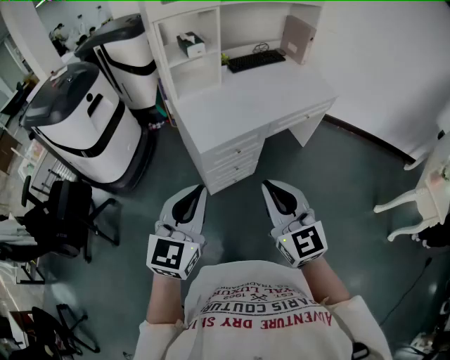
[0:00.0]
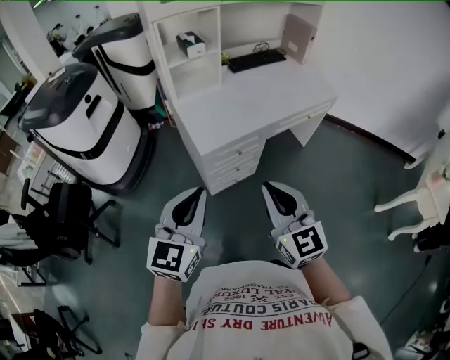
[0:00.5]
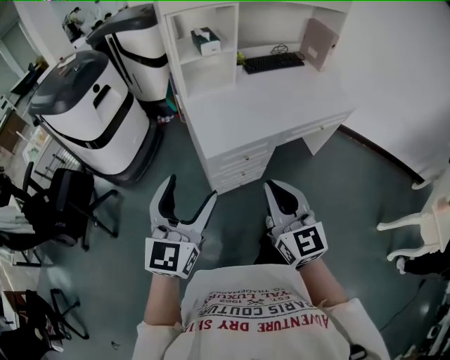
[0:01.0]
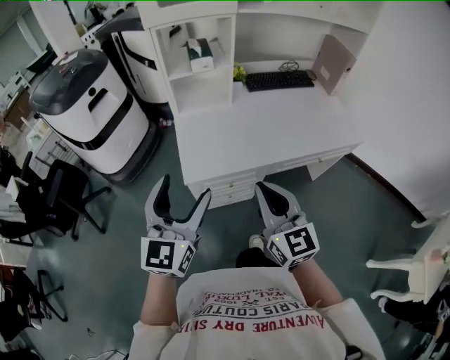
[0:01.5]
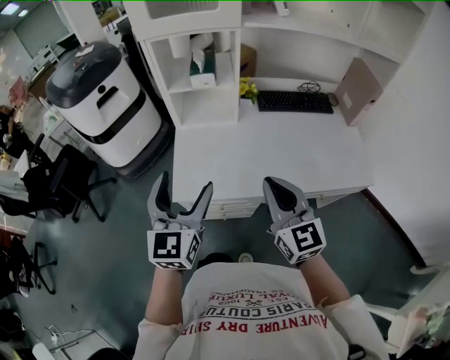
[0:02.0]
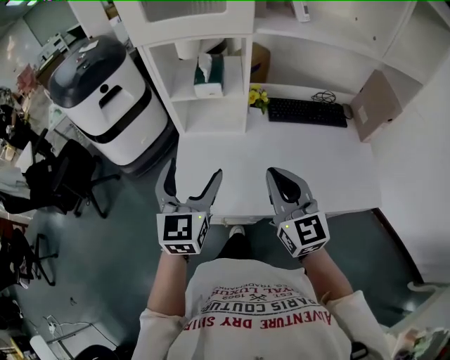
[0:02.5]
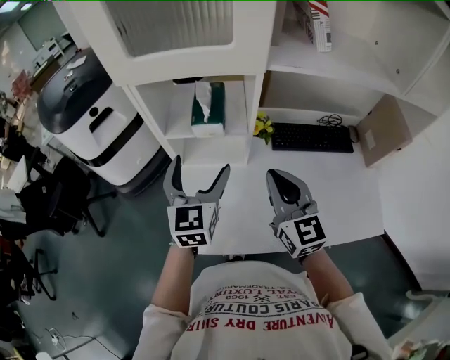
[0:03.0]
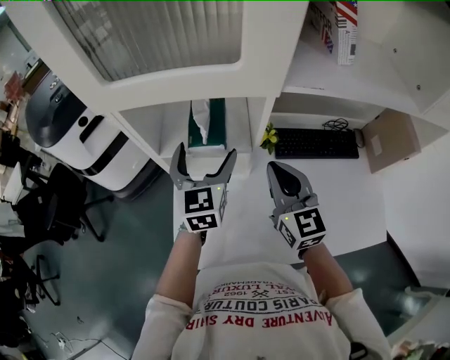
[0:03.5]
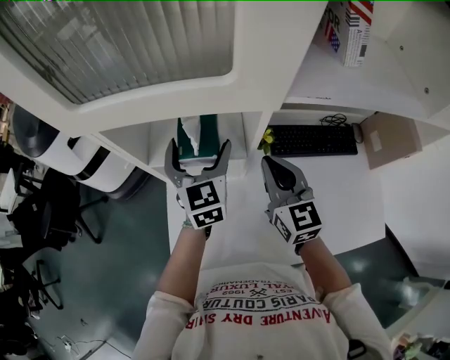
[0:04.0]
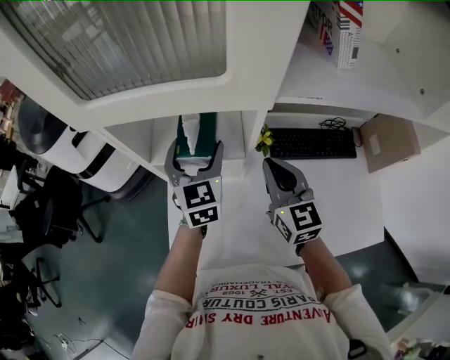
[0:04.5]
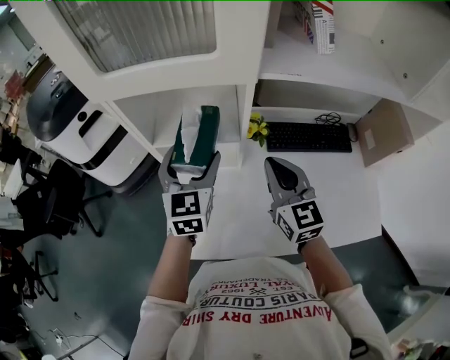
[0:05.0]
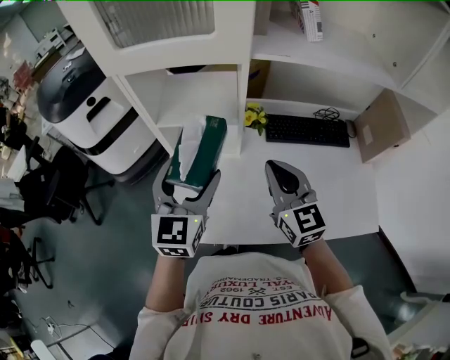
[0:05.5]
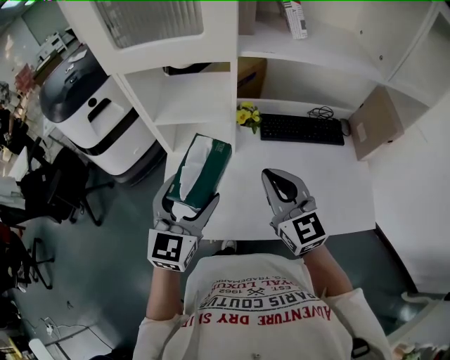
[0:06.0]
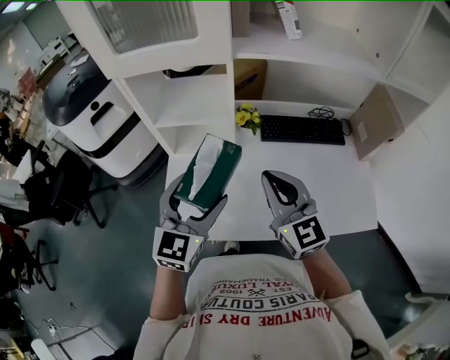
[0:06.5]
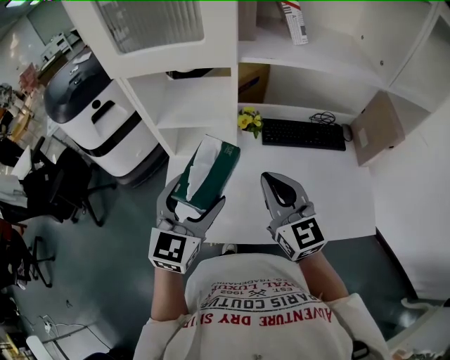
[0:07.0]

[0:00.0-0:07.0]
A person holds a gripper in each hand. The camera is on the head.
0:00.0 to 0:02.0: The left gripper moves about 35 cm, changes its angle by about 40 degrees, and opens its fingers. The right gripper moves about 40 cm, and turns by about 20 degrees.
0:02.0 to 0:03.5: The grippers both shift forward by roughly 35 cm.
0:03.5 to 0:05.0: The grippers stay close to where they were, moving slightly.
0:05.0 to 0:07.0: The left gripper is displaced backward by some 20 cm, while the right gripper travels backward by some 10 cm.

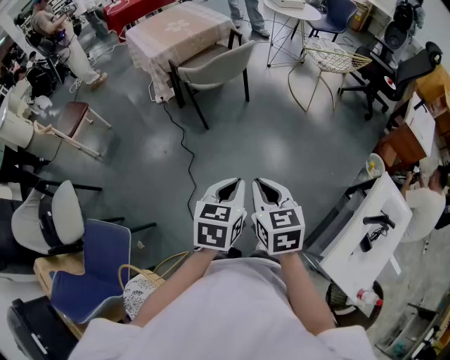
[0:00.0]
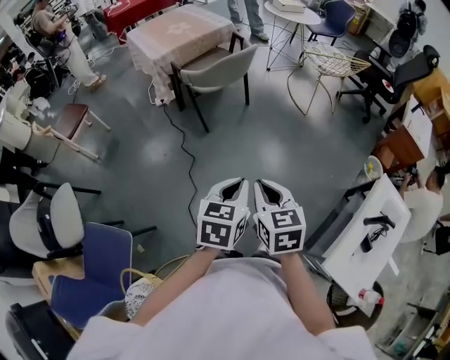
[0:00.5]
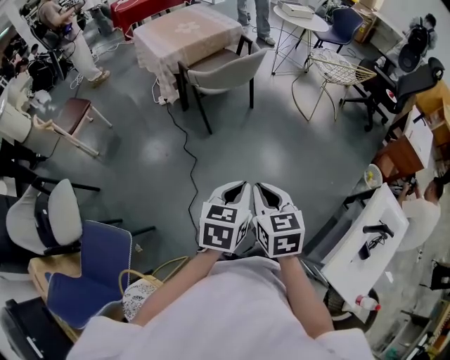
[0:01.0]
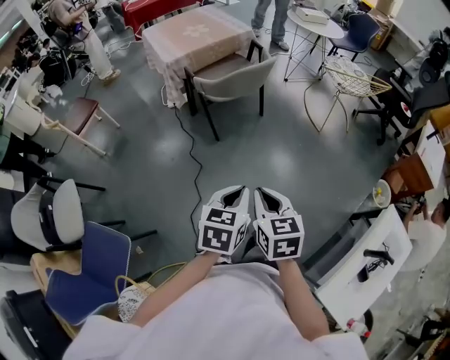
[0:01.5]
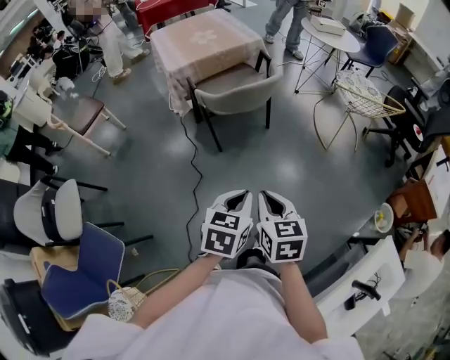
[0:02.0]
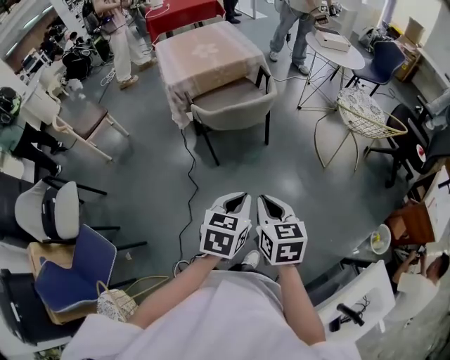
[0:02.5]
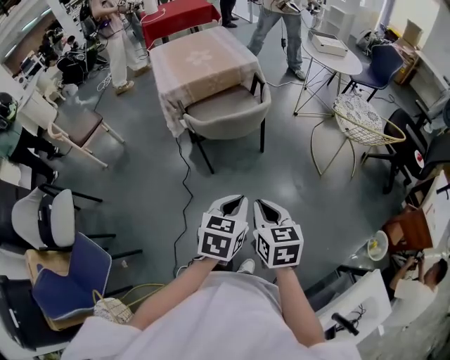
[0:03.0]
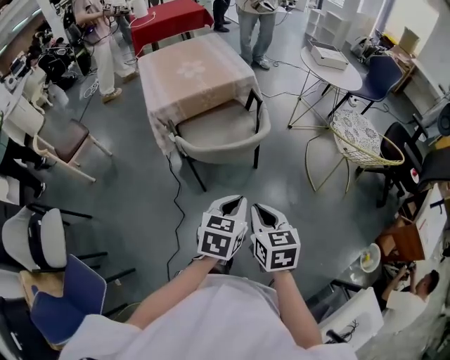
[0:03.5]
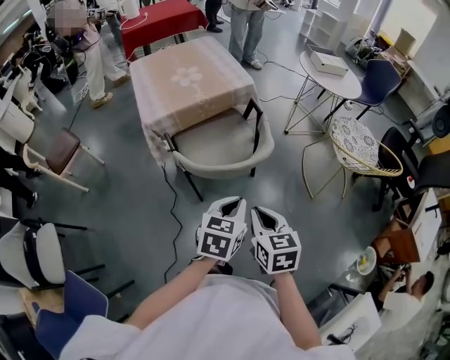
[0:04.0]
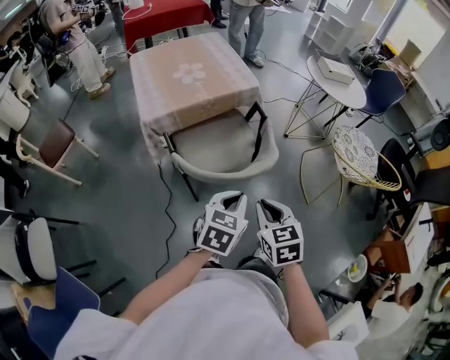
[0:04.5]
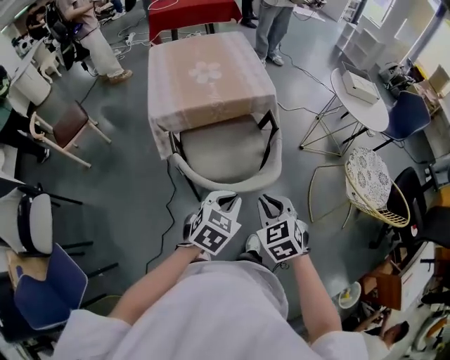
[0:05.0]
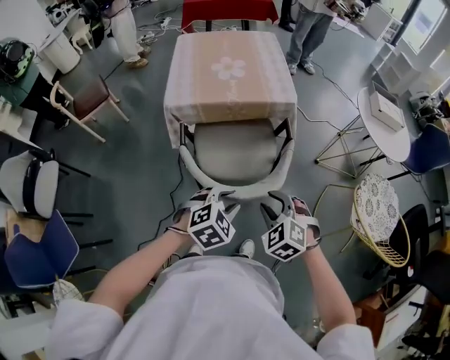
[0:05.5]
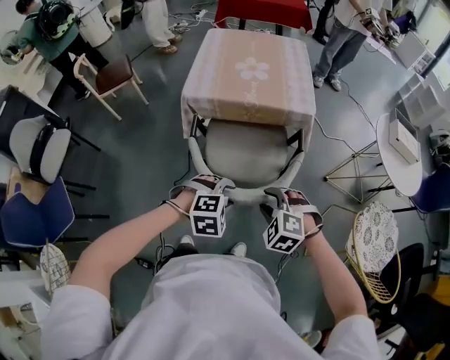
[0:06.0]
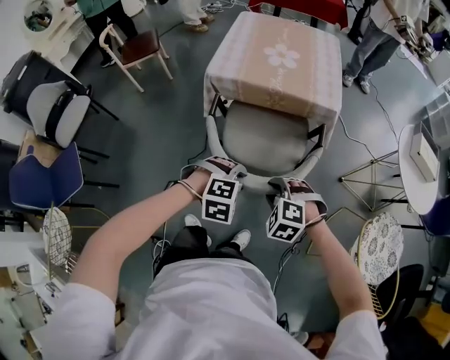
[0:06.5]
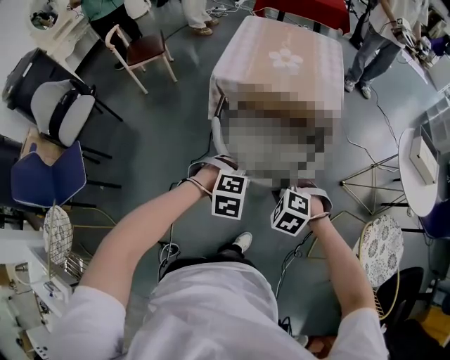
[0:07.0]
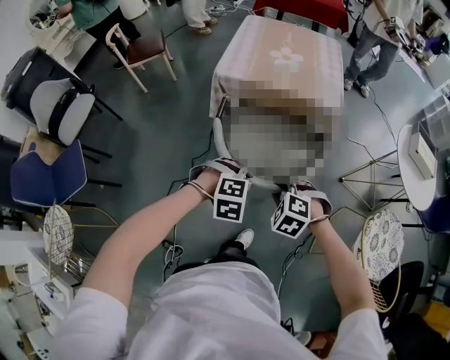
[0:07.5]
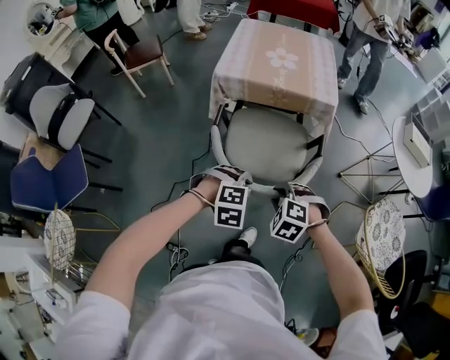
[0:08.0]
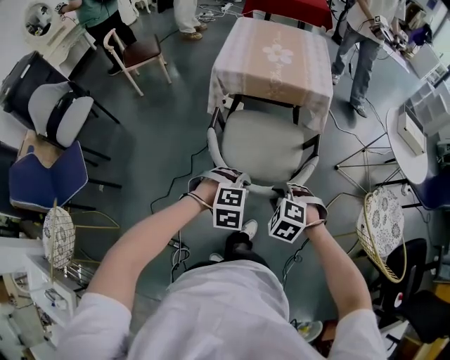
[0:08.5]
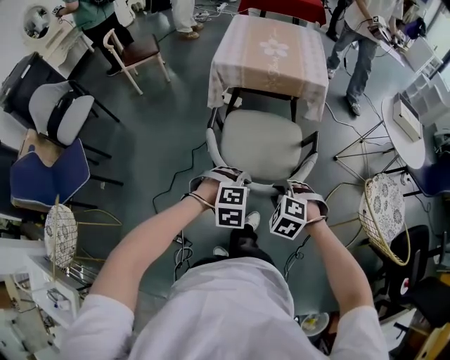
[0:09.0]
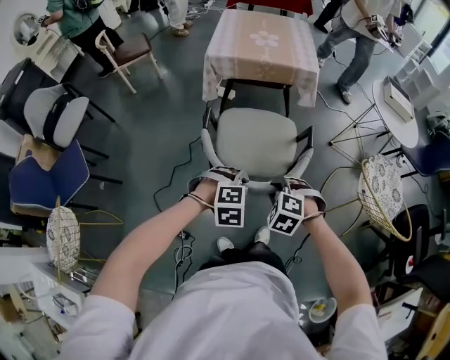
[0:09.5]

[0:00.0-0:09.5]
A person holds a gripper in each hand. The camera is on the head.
0:00.0 to 0:02.0: The grippers both shift forward by about 20 cm.
0:02.0 to 0:04.0: The two grippers go about 30 cm forward.
0:04.0 to 0:05.5: The right gripper heads forward, covering some 20 cm, twists roughly 70 degrees counterclockwise, seen from behind, and opens up. Meanwhile the left gripper travels forward and downward by some 15 cm, swivels about 30 degrees, and opens its fingers.
0:05.5 to 0:07.5: The right gripper ends up roughly 5 cm from where it was, and turns by approximately 30 degrees. Meanwhile the left gripper rotates about 20 degrees.
0:07.5 to 0:09.5: Both grippers move backward, about 25 cm.

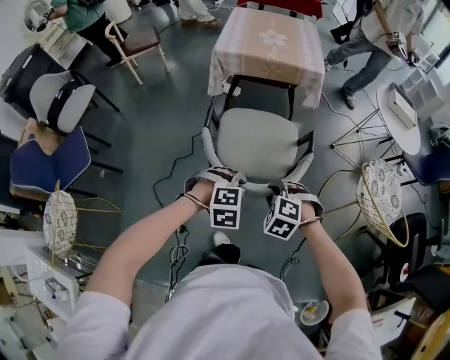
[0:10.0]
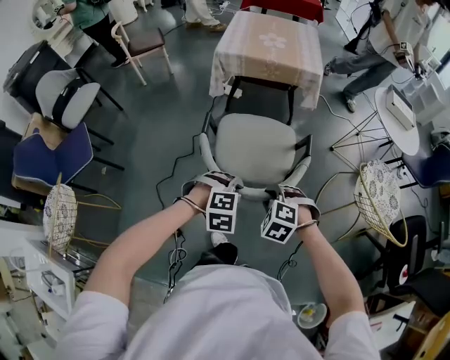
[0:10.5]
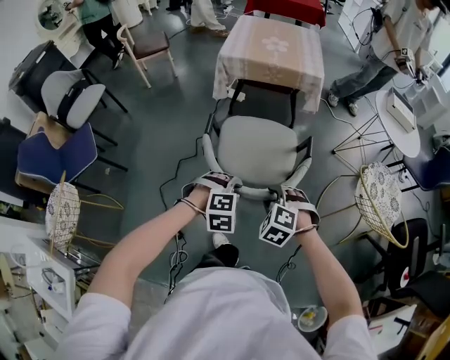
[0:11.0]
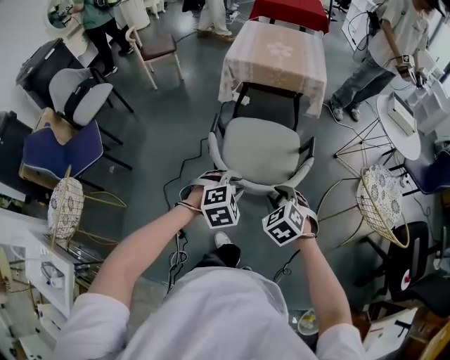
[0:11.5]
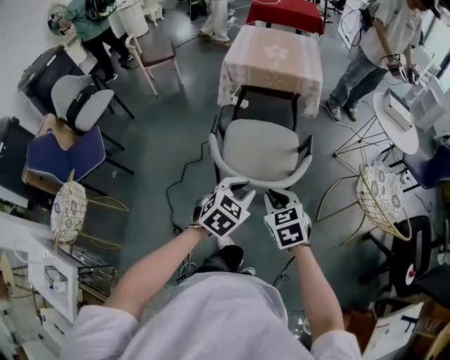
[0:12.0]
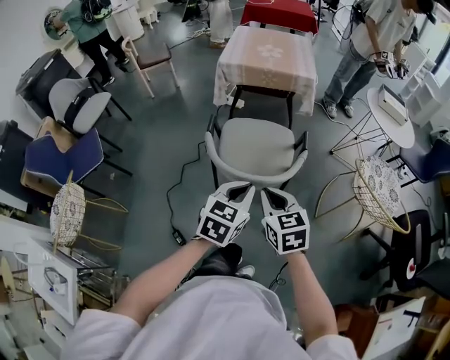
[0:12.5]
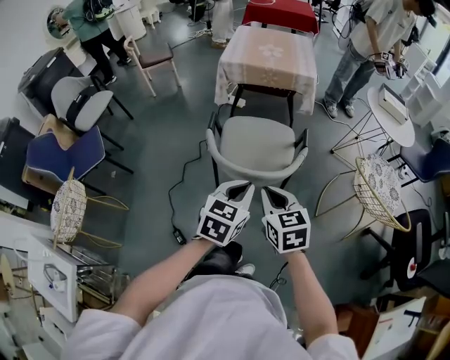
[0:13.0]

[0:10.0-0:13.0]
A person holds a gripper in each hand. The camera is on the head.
0:10.0 to 0:11.5: The two grippers go roughly 5 cm backward. The right gripper rotates approximately 30 degrees.
0:11.5 to 0:13.0: The two grippers go approximately 10 cm upward and backward. The left gripper twists approximately 50 degrees counterclockwise, seen from behind, and closes its fingers; the right gripper swivels some 40 degrees, and closes up.

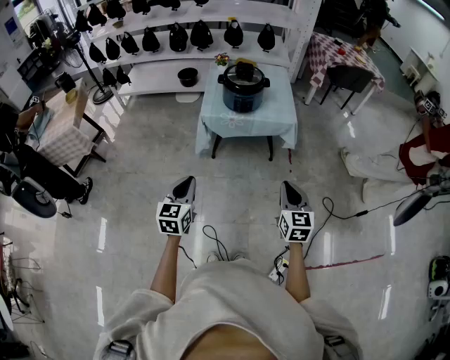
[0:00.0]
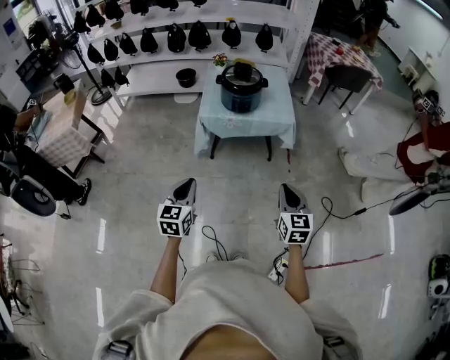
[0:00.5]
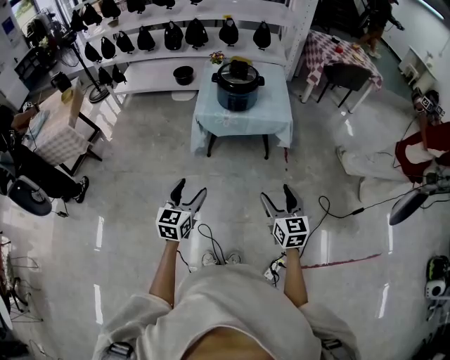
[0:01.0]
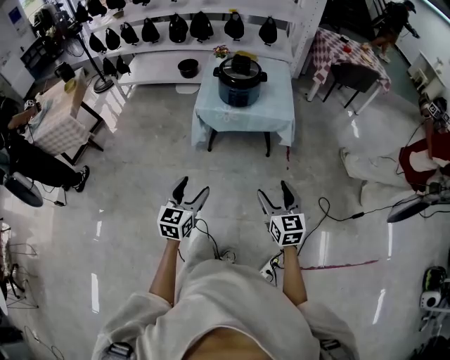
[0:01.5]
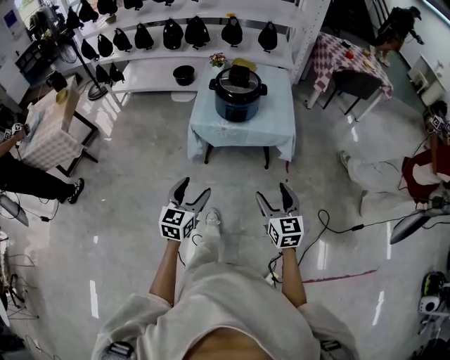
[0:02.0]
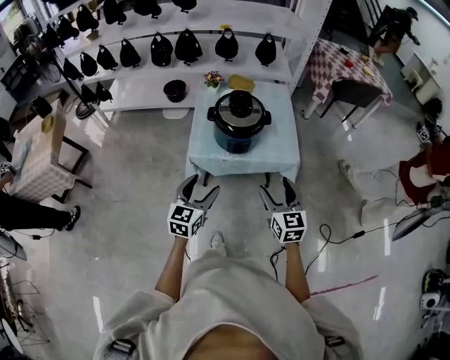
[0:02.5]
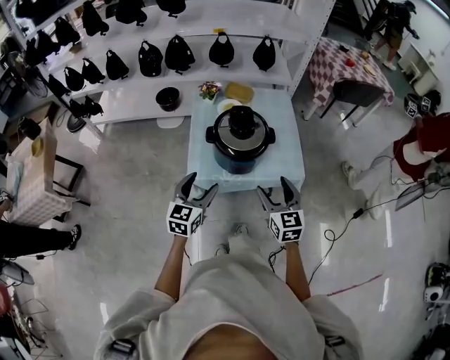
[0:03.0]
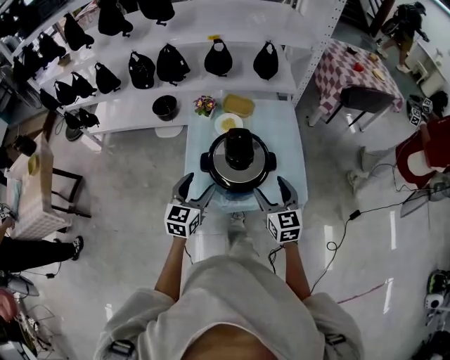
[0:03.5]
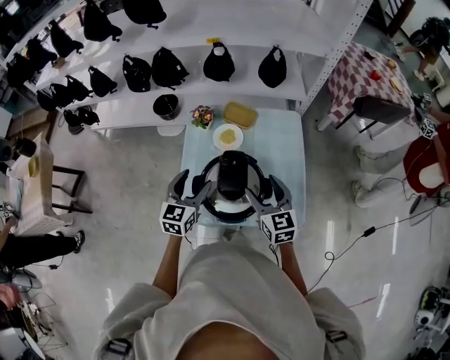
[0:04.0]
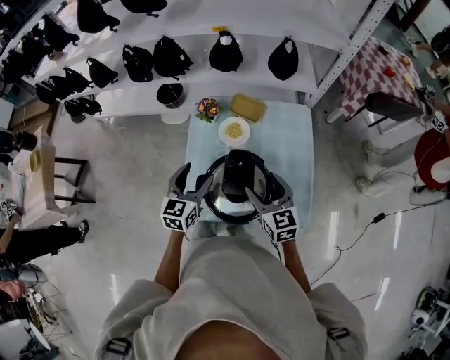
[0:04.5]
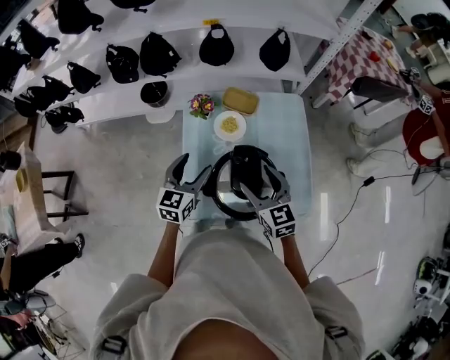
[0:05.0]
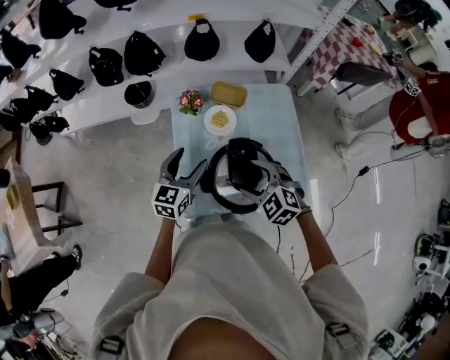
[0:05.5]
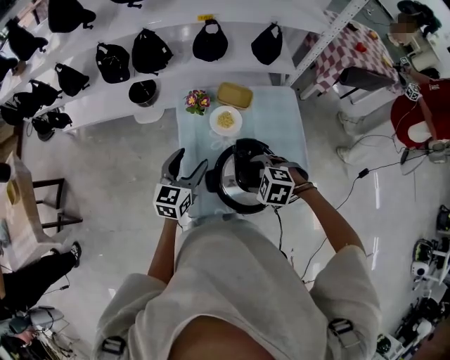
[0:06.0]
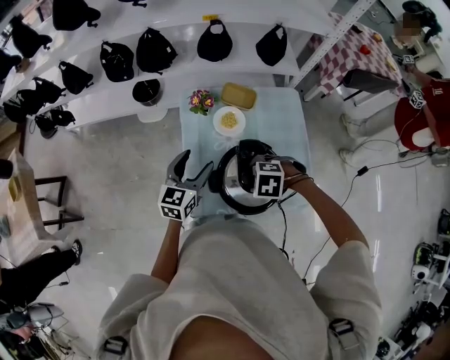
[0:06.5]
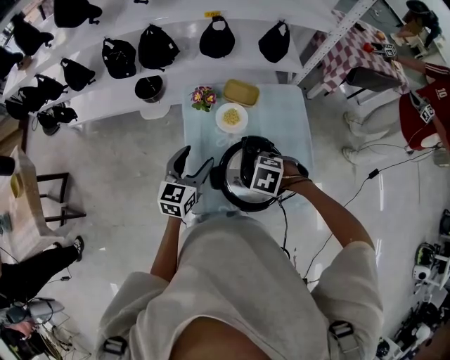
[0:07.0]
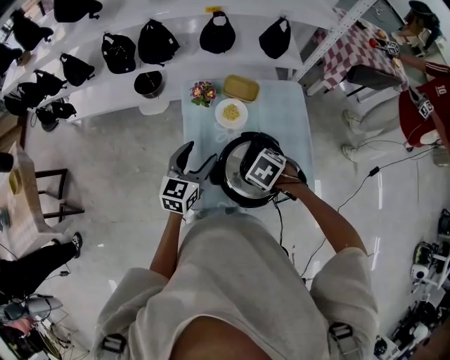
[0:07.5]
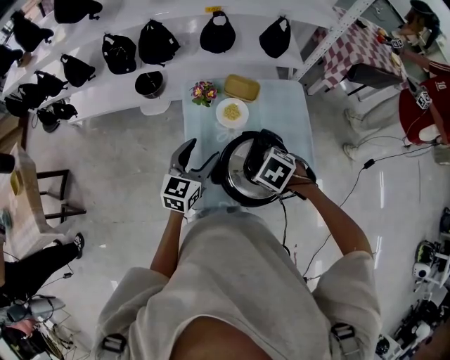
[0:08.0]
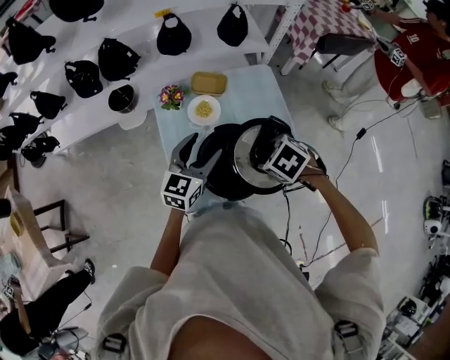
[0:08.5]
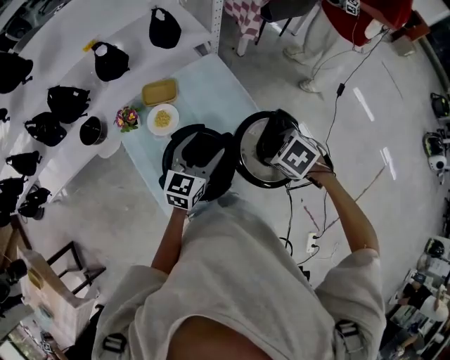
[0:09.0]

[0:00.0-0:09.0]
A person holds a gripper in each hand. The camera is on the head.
0:00.0 to 0:02.0: The right gripper heads forward, covering some 10 cm, and opens its fingers. Meanwhile the left gripper travels forward and to the right by some 15 cm, and opens its fingers.
0:02.0 to 0:04.5: The pair of grippers is taken forward, some 70 cm.
0:04.5 to 0:07.0: The right gripper moves roughly 10 cm, and tips its fingers downward by some 60 degrees; the left gripper changes place by approximately 5 cm.
0:07.0 to 0:09.0: The left gripper moves about 25 cm, and changes its angle by about 30 degrees; the right gripper moves approximately 25 cm, and rotates around the line of its fingers by roughly 50 degrees, clockwise from behind.
